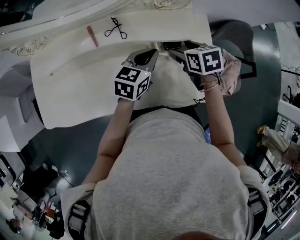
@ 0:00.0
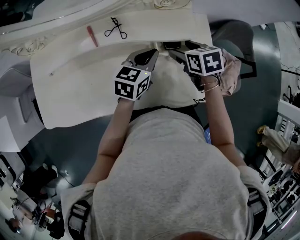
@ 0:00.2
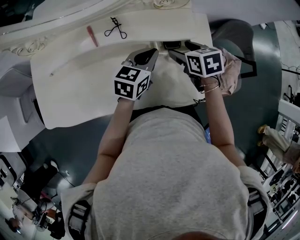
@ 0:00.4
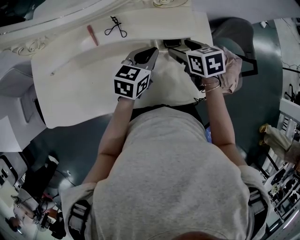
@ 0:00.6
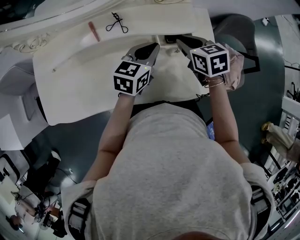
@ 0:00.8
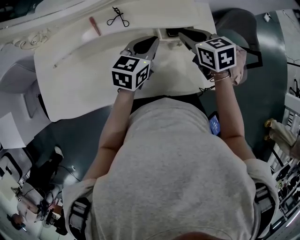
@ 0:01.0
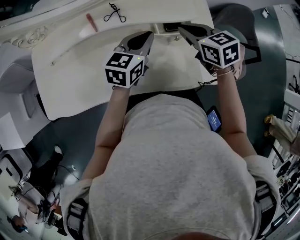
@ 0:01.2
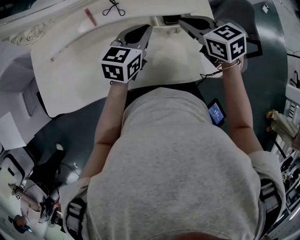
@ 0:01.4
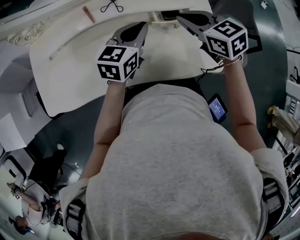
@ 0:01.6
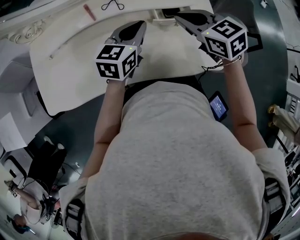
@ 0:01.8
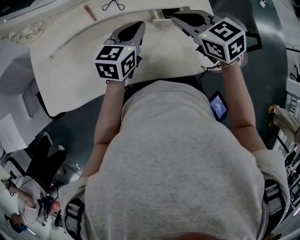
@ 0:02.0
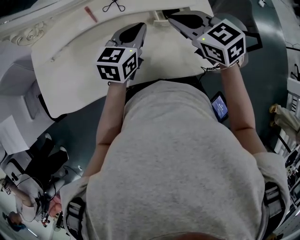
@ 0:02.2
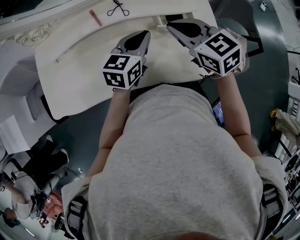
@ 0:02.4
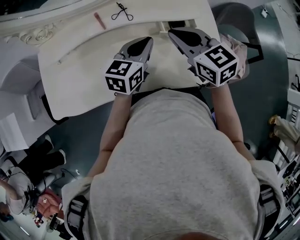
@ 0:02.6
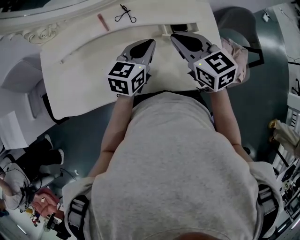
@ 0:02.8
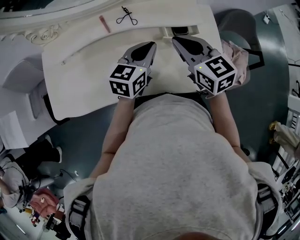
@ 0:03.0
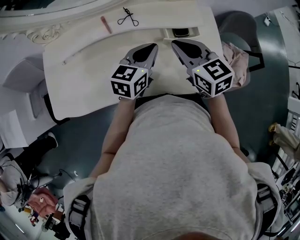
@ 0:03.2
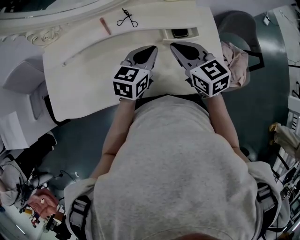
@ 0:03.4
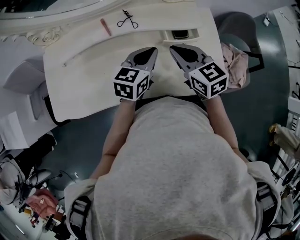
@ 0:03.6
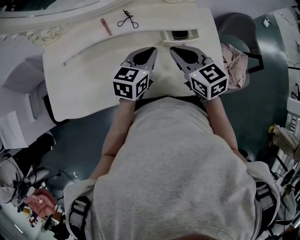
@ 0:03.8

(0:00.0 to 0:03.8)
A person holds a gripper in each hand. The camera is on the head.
0:00.0 - 0:01.2: The right gripper heads upward, covering about 5 cm, and closes up.
0:01.2 - 0:02.6: The right gripper travels to the left and upward by about 10 cm.
0:02.6 - 0:03.8: The grippers stay close to where they were, moving slightly.

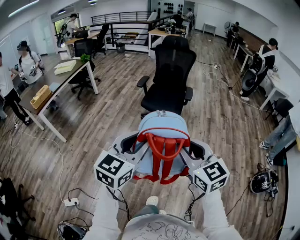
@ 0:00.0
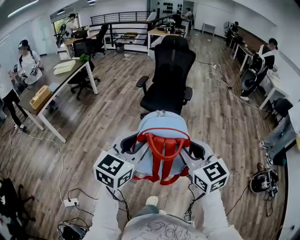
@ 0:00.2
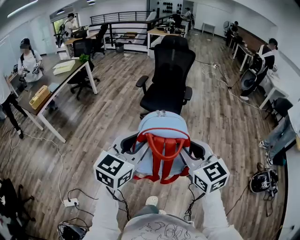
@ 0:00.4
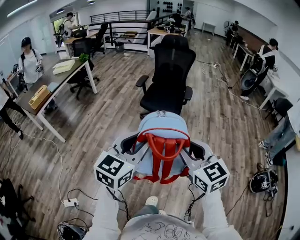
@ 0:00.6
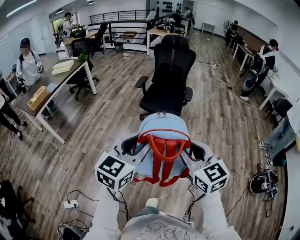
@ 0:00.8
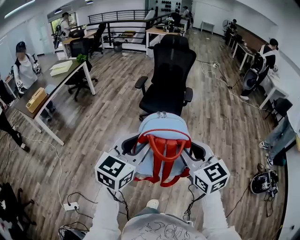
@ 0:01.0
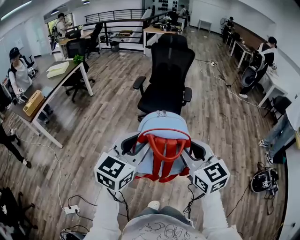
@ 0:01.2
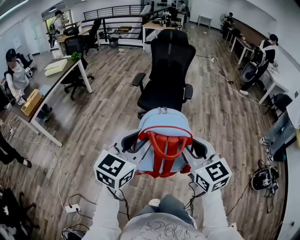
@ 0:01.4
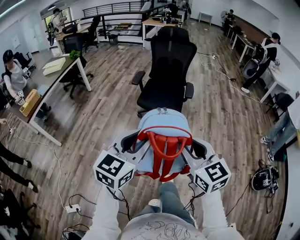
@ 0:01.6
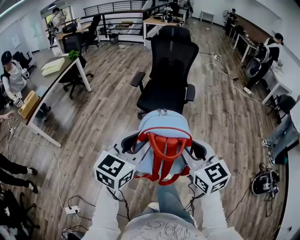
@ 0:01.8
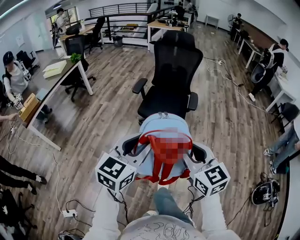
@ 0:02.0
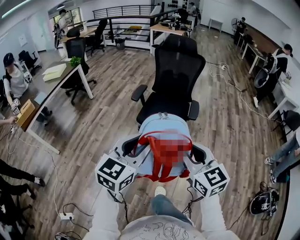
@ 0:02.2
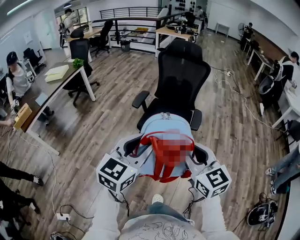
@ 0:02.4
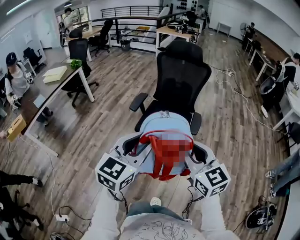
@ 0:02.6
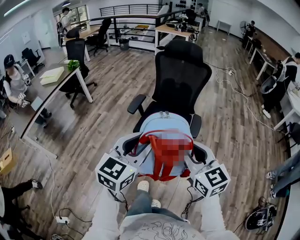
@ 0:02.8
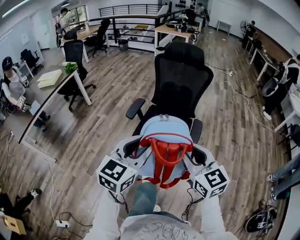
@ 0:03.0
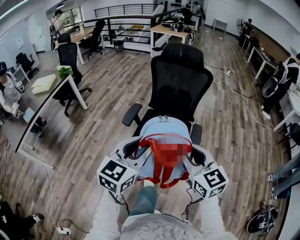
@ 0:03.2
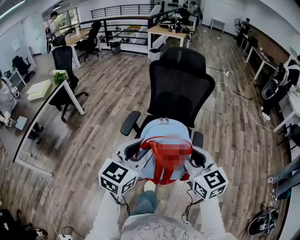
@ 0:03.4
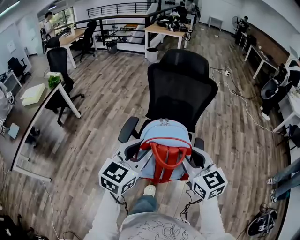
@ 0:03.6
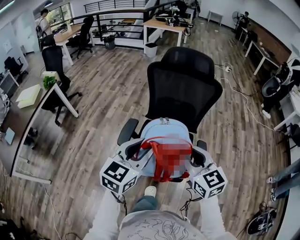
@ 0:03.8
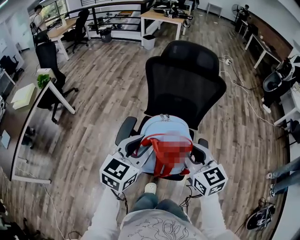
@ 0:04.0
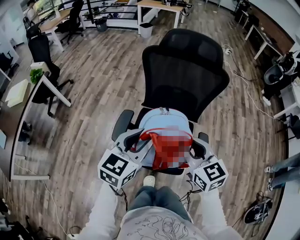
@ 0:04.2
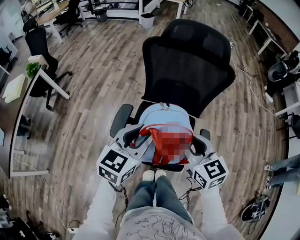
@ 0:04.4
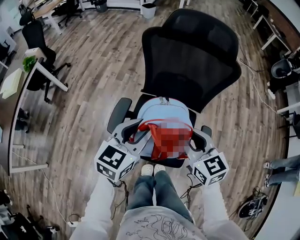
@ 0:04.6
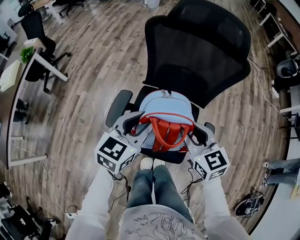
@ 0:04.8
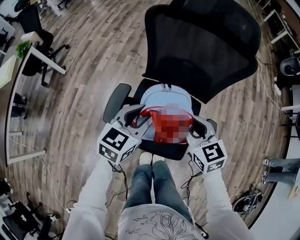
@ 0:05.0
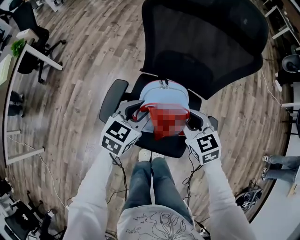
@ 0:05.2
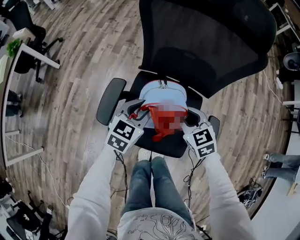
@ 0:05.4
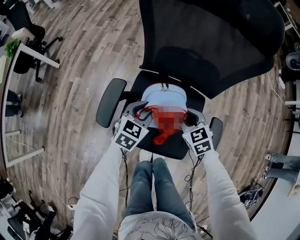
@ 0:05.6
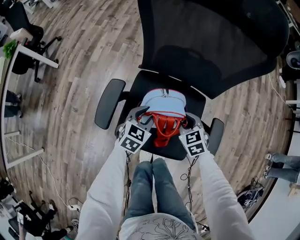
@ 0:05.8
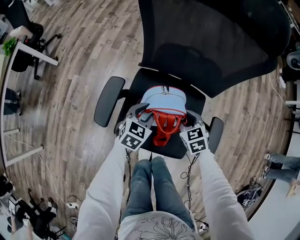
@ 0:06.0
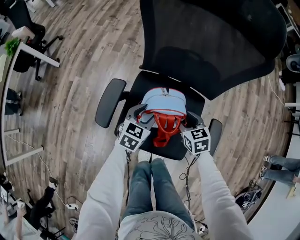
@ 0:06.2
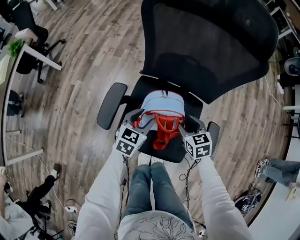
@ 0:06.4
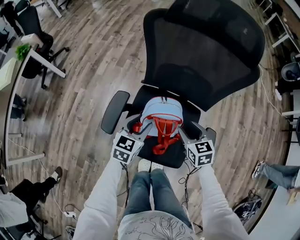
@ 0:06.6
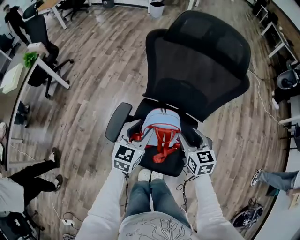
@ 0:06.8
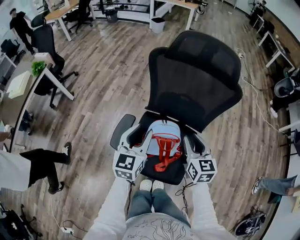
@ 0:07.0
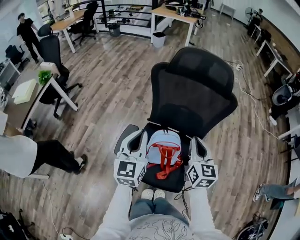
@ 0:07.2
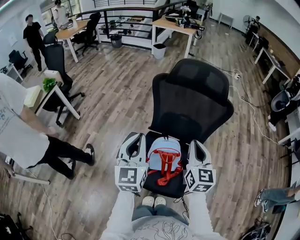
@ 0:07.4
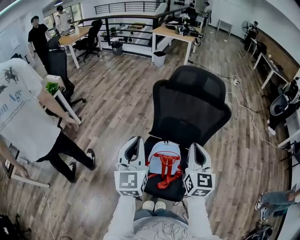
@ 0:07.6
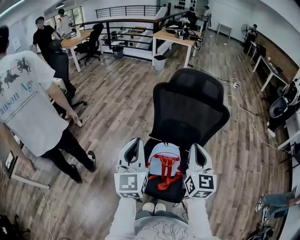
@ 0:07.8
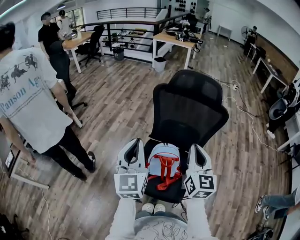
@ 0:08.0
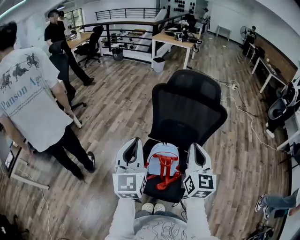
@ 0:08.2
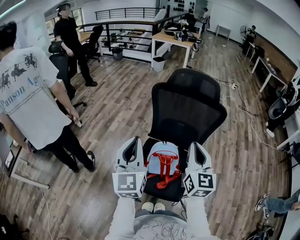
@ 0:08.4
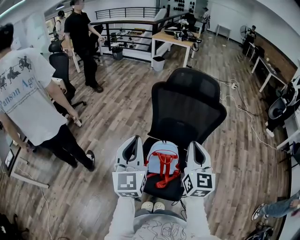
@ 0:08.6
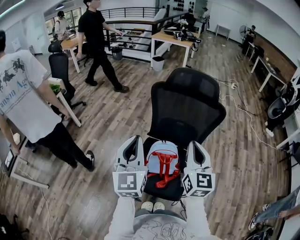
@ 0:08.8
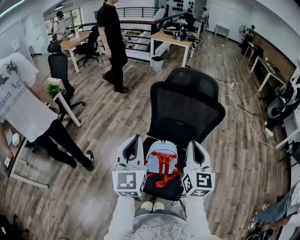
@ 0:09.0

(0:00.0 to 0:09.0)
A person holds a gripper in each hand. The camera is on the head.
0:00.0 - 0:01.6: Both grippers move forward, approximately 15 cm.
0:01.6 - 0:03.0: The pair of grippers is taken forward, about 40 cm.
0:03.0 - 0:04.4: Both grippers move forward, about 40 cm.
0:04.4 - 0:06.0: Both grippers move downward, approximately 35 cm. The right gripper changes its angle by some 30 degrees; the left gripper rotates about 20 degrees.
0:06.0 - 0:07.6: Both grippers travel together upward, approximately 40 cm. The left gripper tips its fingers upward by roughly 40 degrees, and closes up. The right gripper tilts its fingers roughly 50 degrees upward, and closes up.
0:07.6 - 0:09.0: The left gripper shifts by about 5 cm, while the right gripper ends up about 5 cm from where it was.

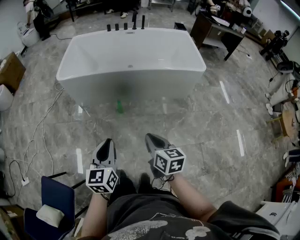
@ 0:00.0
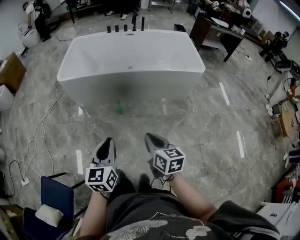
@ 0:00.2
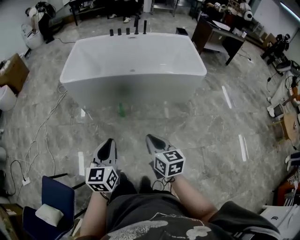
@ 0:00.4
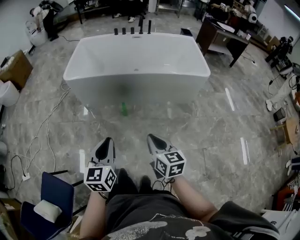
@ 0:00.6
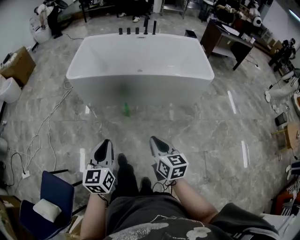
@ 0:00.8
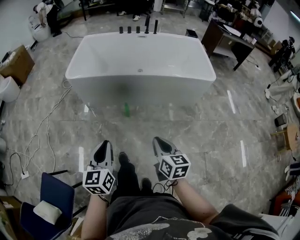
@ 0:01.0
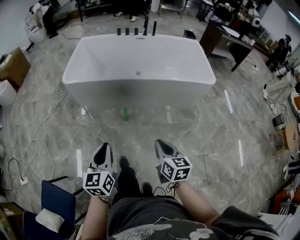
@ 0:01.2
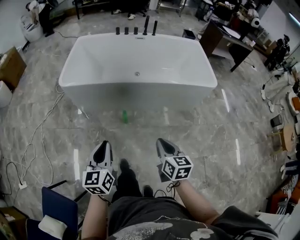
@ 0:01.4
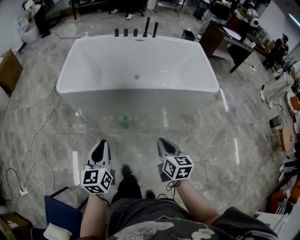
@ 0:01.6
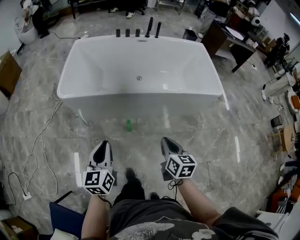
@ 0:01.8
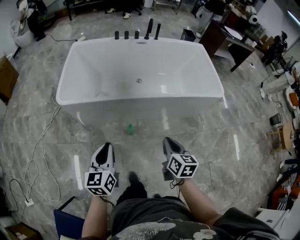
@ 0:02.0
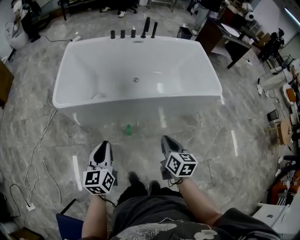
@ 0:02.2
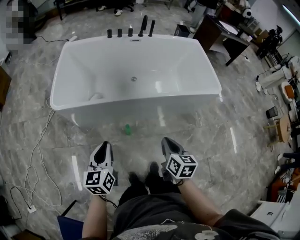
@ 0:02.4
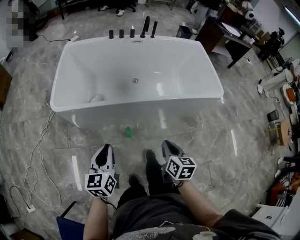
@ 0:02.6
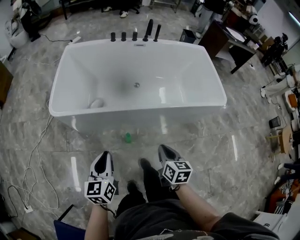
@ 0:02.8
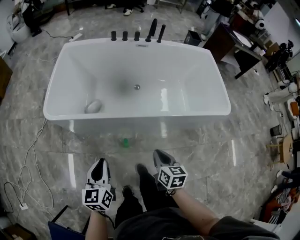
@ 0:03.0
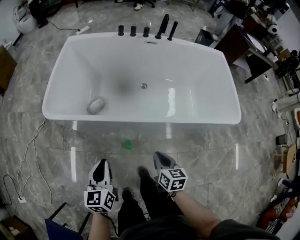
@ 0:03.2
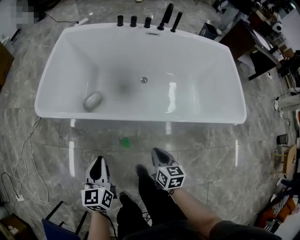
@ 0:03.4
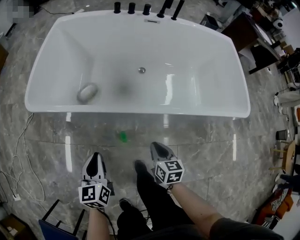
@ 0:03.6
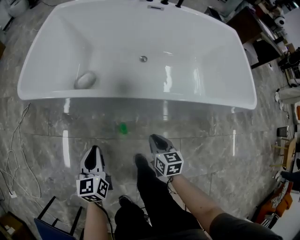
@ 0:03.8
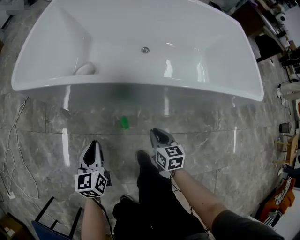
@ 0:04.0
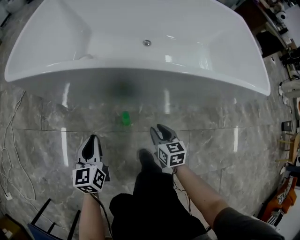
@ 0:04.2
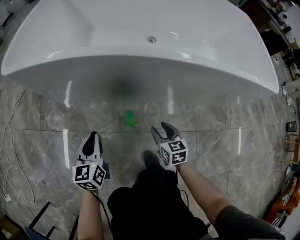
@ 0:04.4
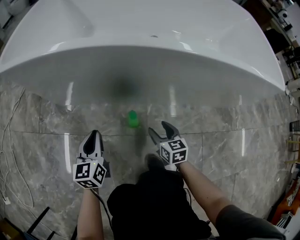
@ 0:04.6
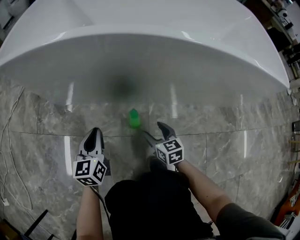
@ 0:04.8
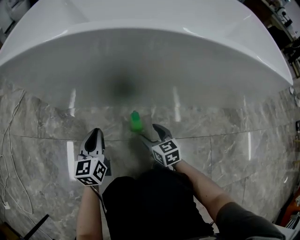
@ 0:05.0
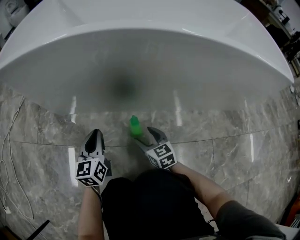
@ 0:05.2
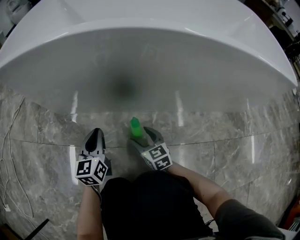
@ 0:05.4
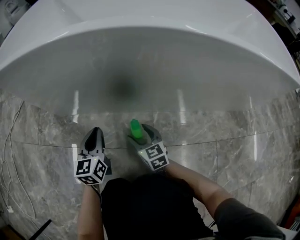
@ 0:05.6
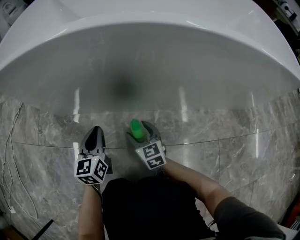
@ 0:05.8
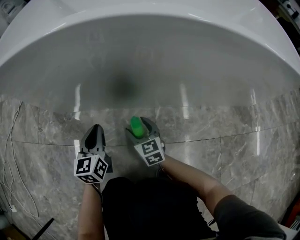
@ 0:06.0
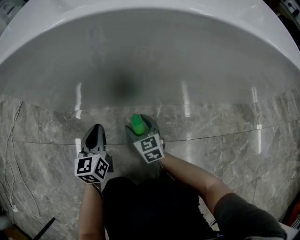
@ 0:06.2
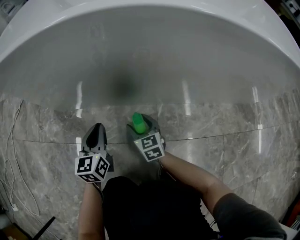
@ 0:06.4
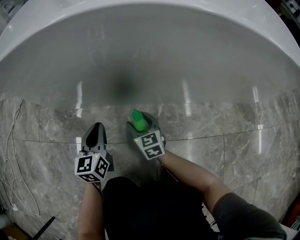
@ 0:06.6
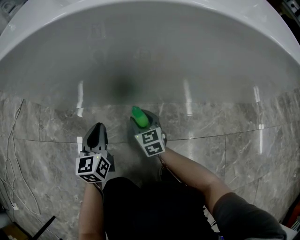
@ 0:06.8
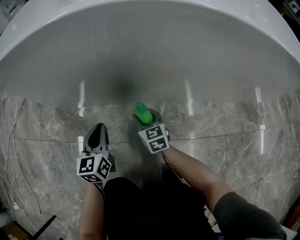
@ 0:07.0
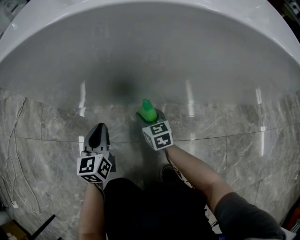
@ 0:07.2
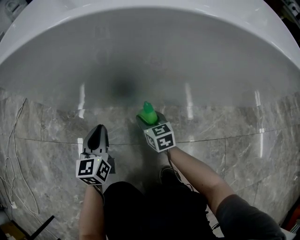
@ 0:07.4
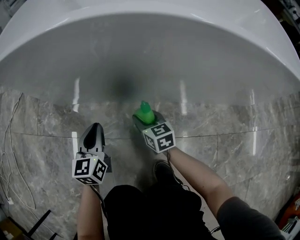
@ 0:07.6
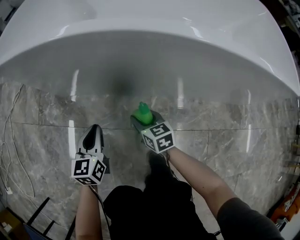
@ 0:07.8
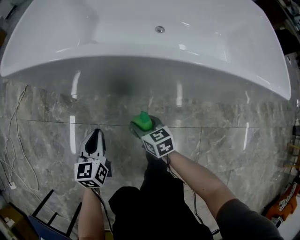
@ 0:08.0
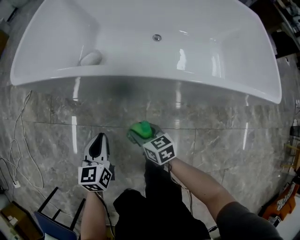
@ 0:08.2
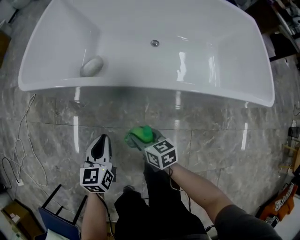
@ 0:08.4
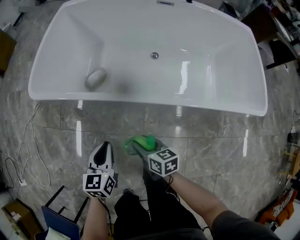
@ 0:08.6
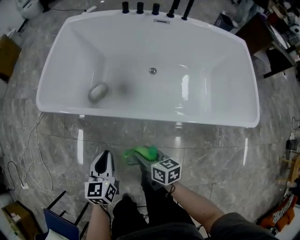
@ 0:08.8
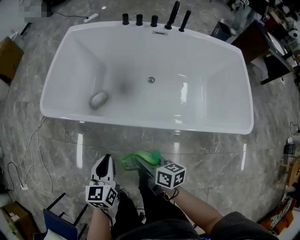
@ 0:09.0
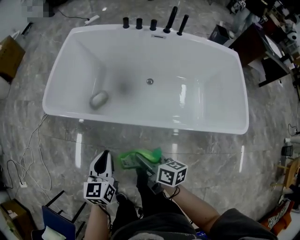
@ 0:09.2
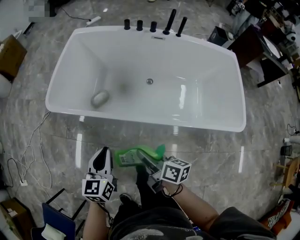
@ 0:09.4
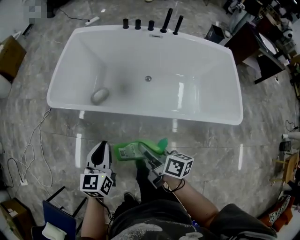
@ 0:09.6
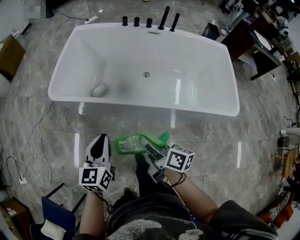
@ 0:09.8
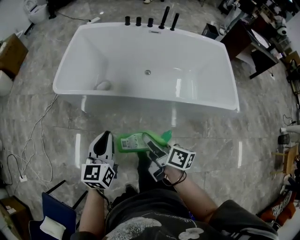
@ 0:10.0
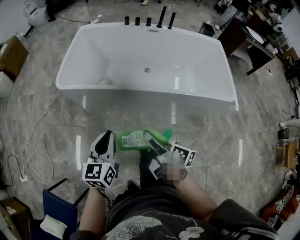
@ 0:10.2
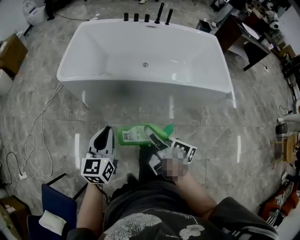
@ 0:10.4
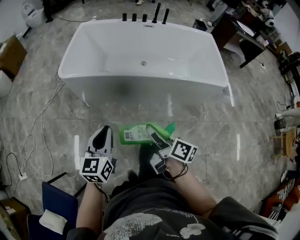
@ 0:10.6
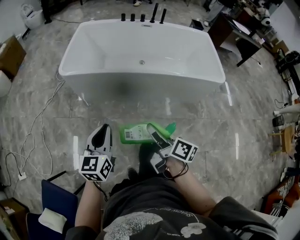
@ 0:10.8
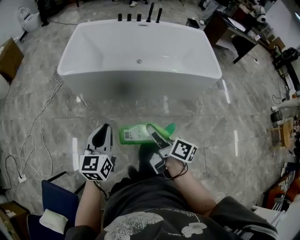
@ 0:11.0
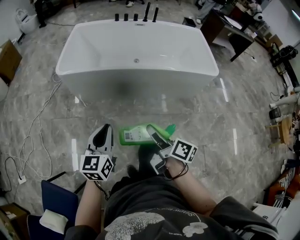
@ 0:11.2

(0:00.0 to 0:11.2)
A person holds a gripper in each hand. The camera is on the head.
0:00.0 - 0:01.6: The left gripper heads forward and to the left, covering approximately 20 cm. Meanwhile the right gripper shifts about 20 cm forward.
0:01.6 - 0:03.2: Both grippers move forward and downward, about 30 cm.
0:03.2 - 0:04.8: Both grippers travel together downward, about 50 cm. The right gripper opens up.
0:04.8 - 0:06.4: The left gripper moves downward and forward, about 10 cm; the right gripper is displaced forward, downward and to the left by approximately 15 cm.
0:06.4 - 0:08.0: The left gripper travels upward and backward by some 15 cm; the right gripper shifts some 20 cm upward, and closes its fingers.
0:08.0 - 0:09.6: Both grippers travel together upward, about 50 cm. The right gripper rotates some 40 degrees.
0:09.6 - 0:11.2: The grippers both shift backward by roughly 30 cm.
